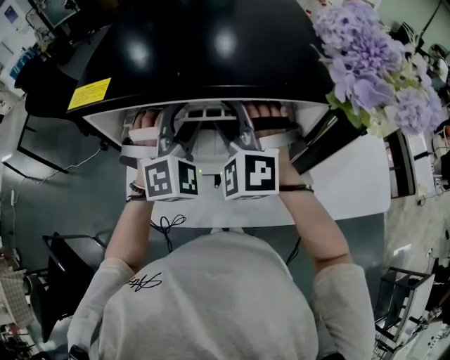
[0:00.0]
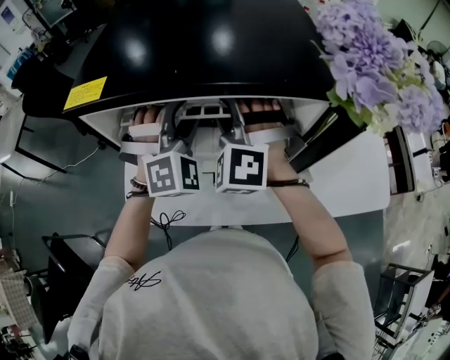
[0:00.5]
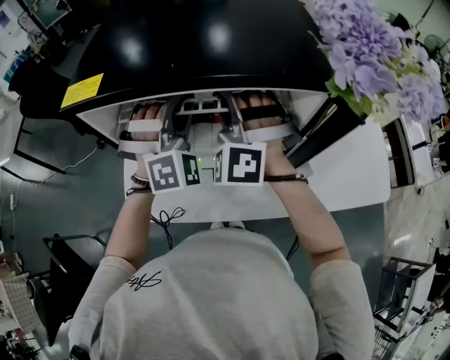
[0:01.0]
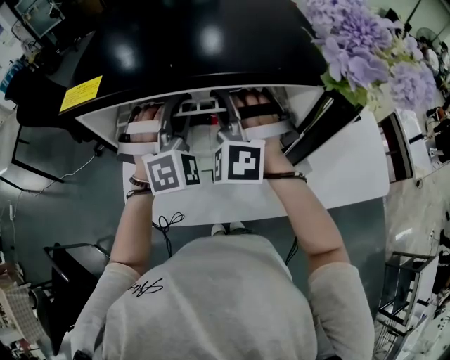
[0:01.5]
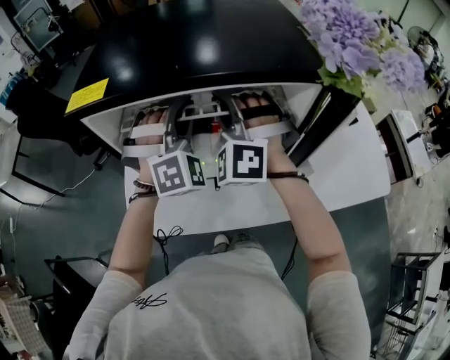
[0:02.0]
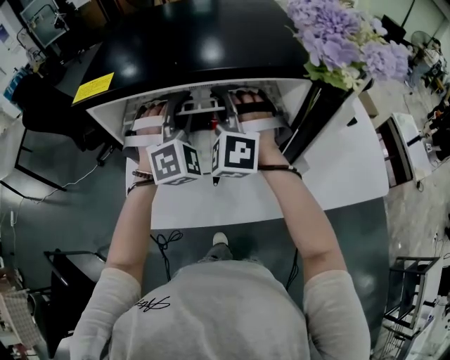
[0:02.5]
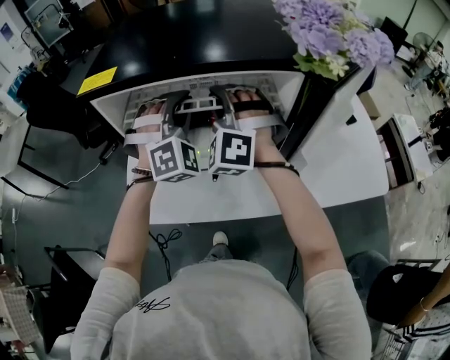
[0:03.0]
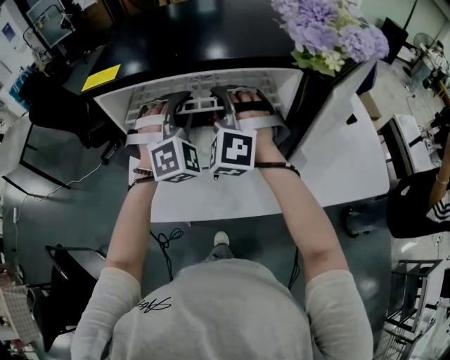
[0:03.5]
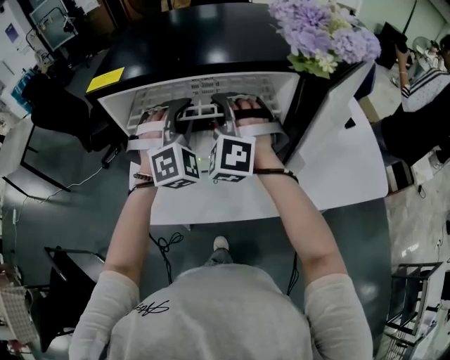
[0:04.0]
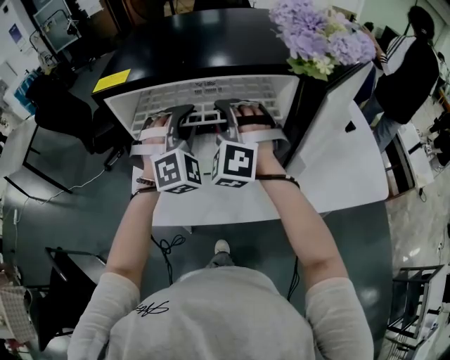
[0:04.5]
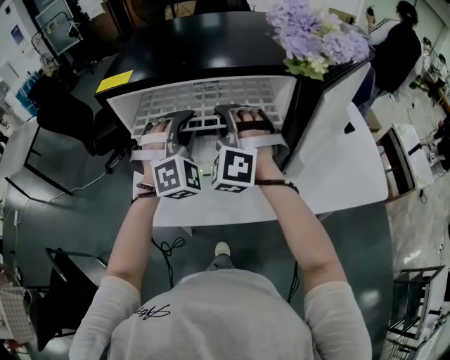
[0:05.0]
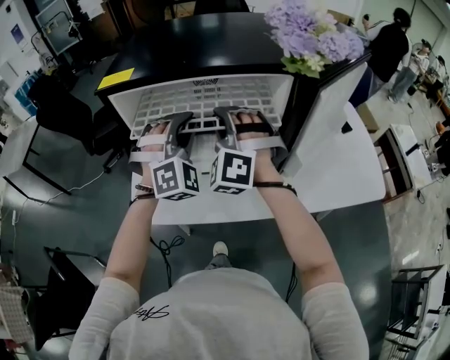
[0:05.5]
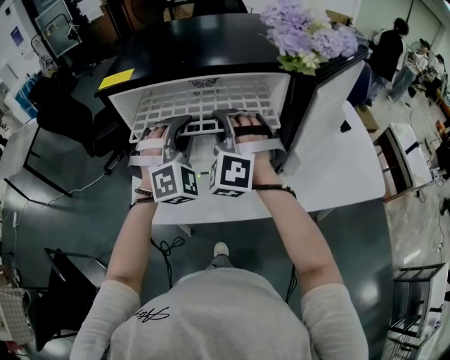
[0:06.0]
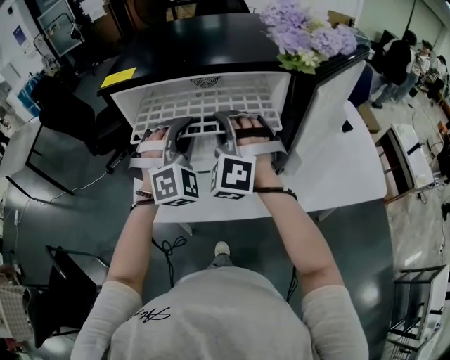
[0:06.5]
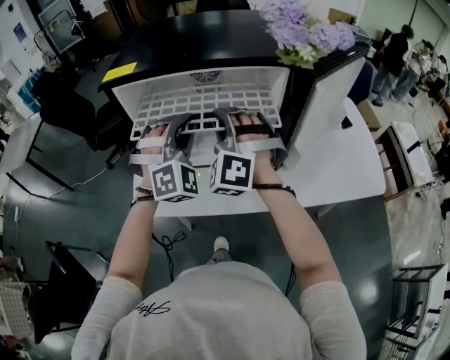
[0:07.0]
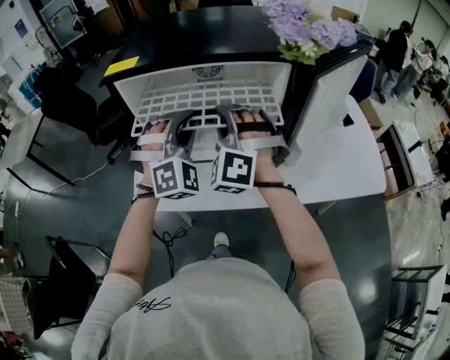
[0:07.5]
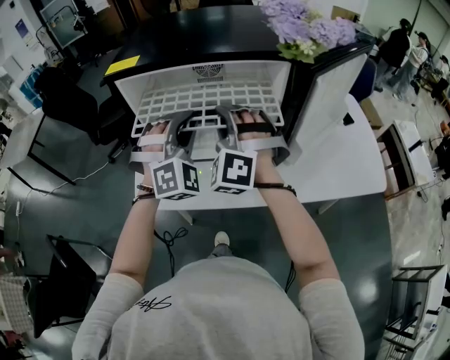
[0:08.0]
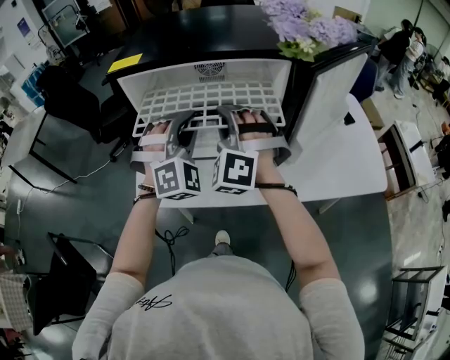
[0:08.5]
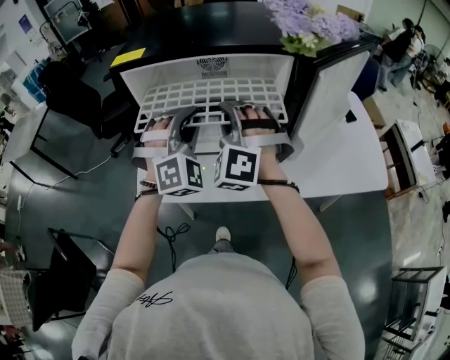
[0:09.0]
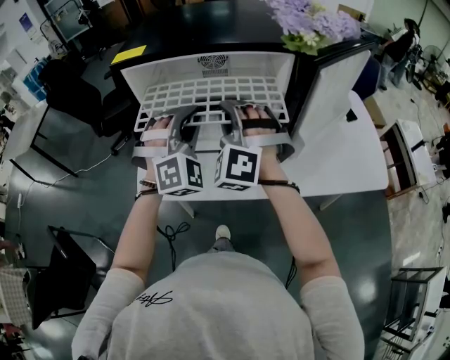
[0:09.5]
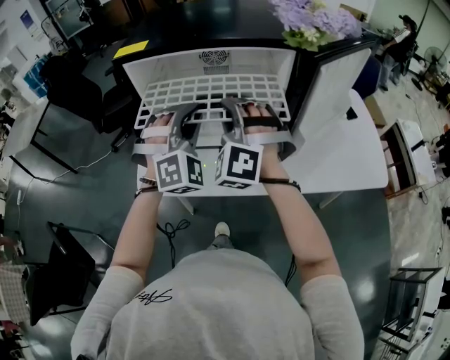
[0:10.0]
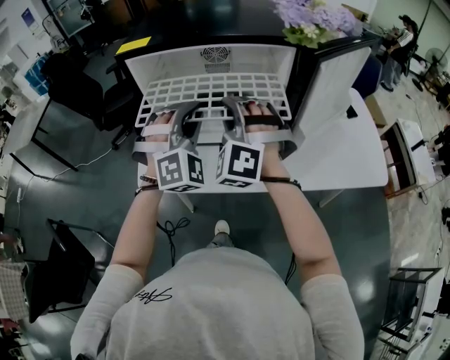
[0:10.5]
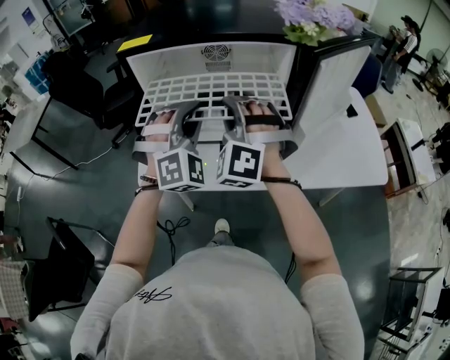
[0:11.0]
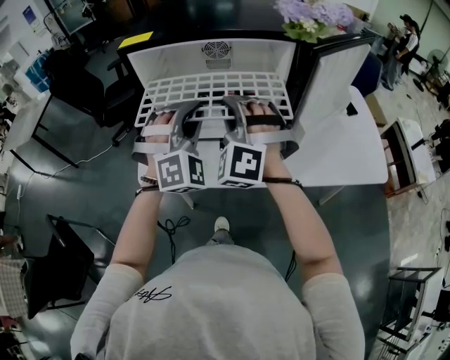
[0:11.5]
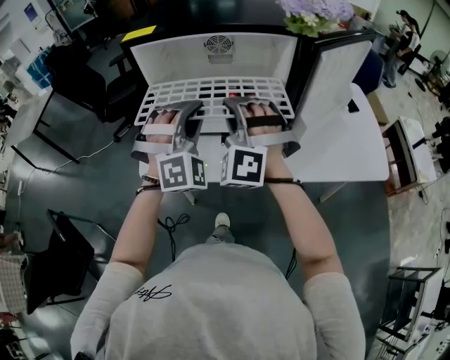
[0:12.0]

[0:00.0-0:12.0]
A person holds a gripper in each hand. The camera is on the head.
0:00.0 to 0:02.0: The right gripper closes its fingers, while the left gripper closes its fingers.
0:02.0 to 0:04.0: The grippers move only a little.
0:04.0 to 0:06.0: The left gripper shifts about 5 cm backward.
0:06.0 to 0:10.0: The grippers make only small movements.
0:10.0 to 0:12.0: The grippers make only small movements.

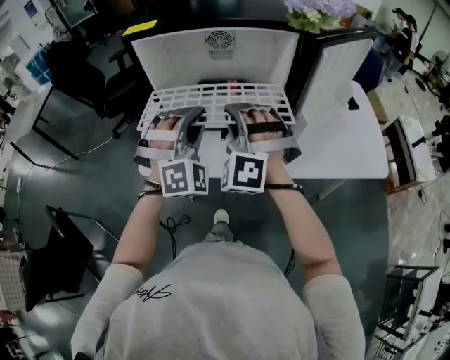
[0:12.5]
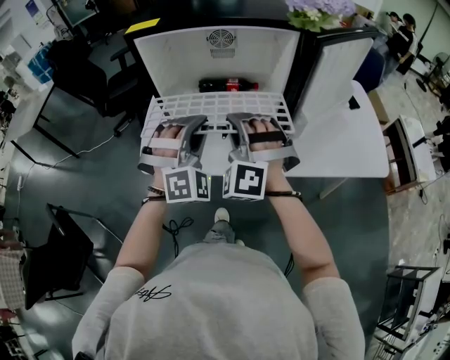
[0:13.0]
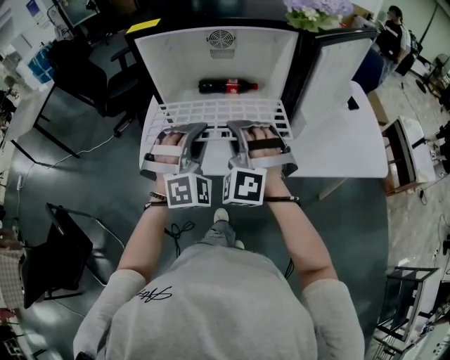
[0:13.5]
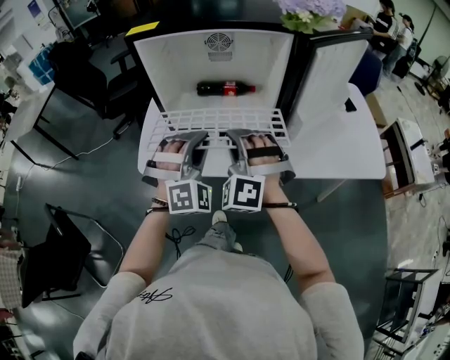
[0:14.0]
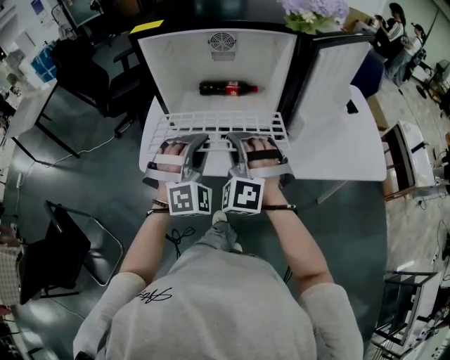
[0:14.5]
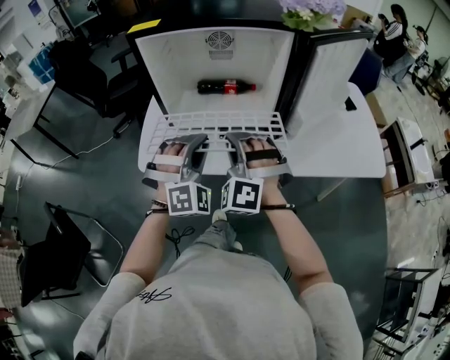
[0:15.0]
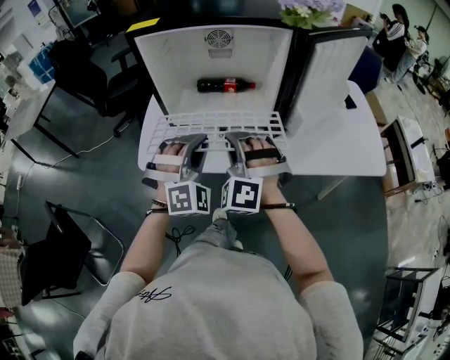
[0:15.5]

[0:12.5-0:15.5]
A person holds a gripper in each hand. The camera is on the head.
0:12.5 to 0:14.0: Both grippers travel together downward, roughly 5 cm.
0:14.0 to 0:15.5: There are only small adjustments of the grippers.

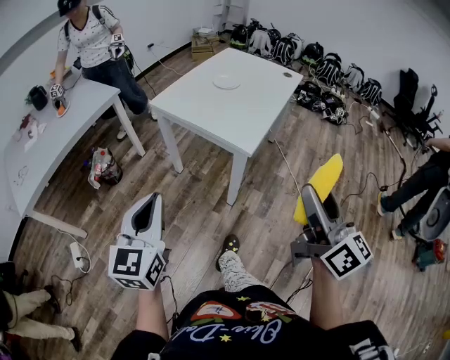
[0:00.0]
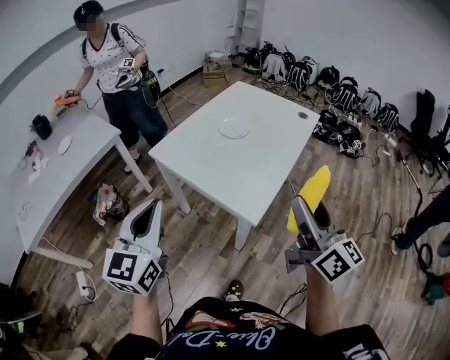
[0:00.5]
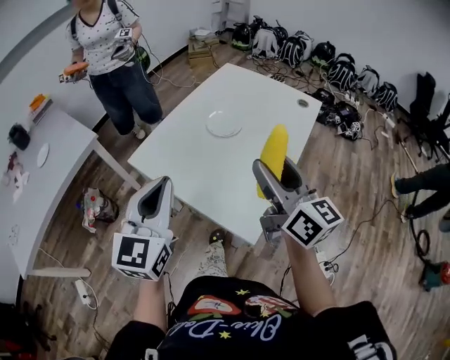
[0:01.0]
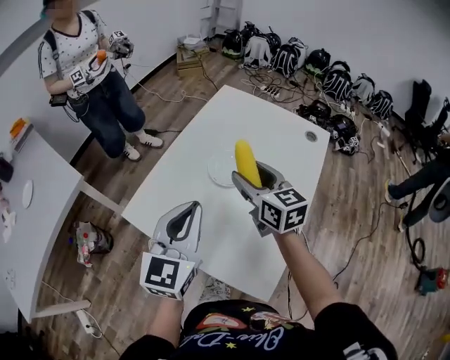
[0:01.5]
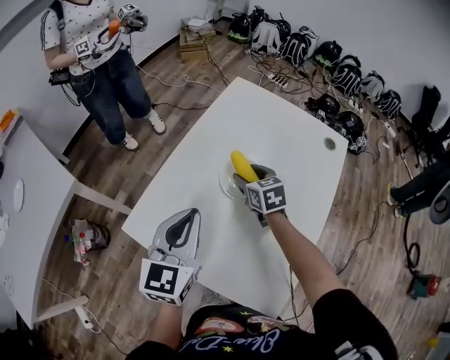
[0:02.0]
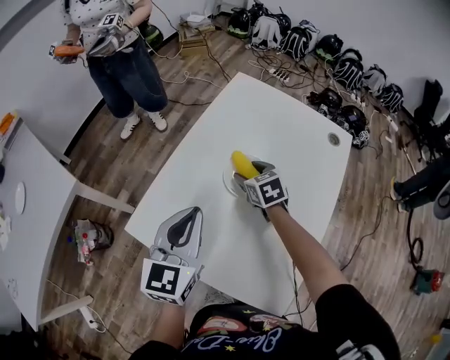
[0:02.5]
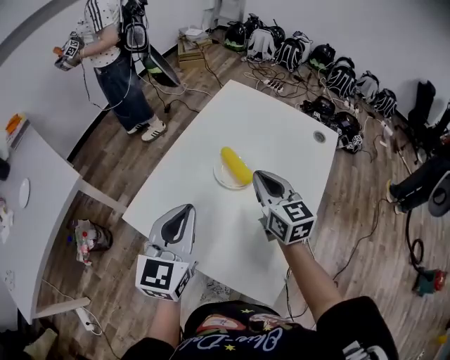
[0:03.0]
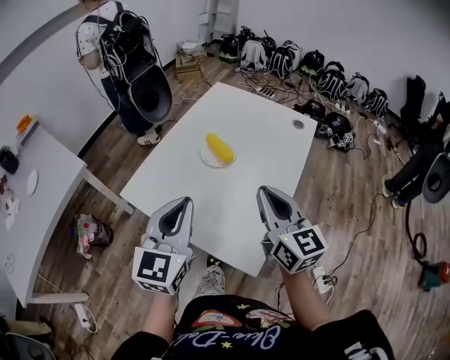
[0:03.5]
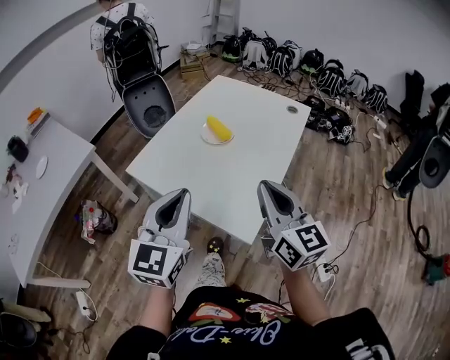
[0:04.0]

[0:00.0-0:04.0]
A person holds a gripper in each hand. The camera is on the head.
0:00.0 to 0:02.0: Both grippers are carried forward, roughly 70 cm. The right gripper points its fingers some 50 degrees further downward.
0:02.0 to 0:04.0: The right gripper goes about 50 cm backward and upward, points its fingers some 40 degrees further upward, and closes up, while the left gripper travels backward by about 30 cm.

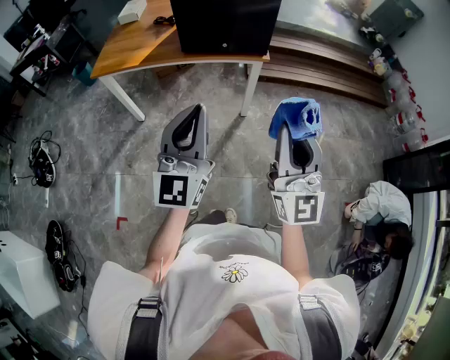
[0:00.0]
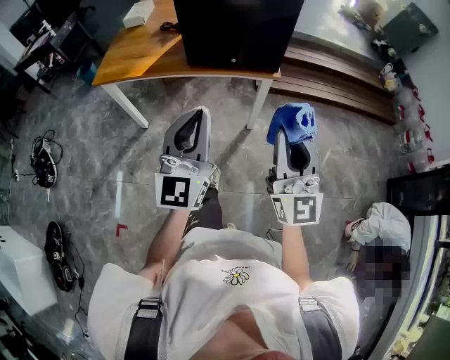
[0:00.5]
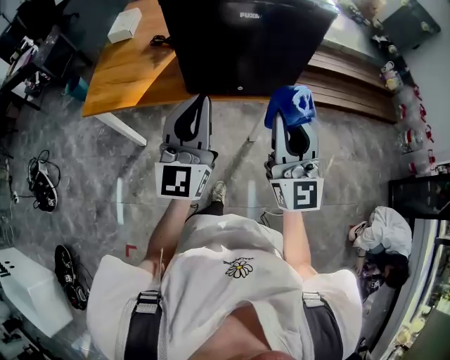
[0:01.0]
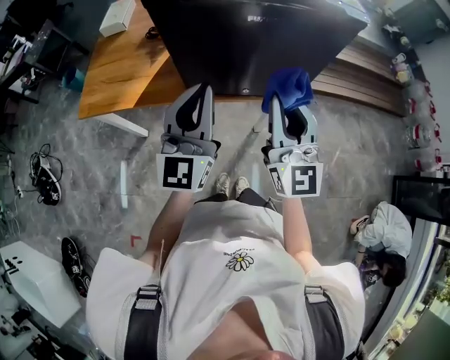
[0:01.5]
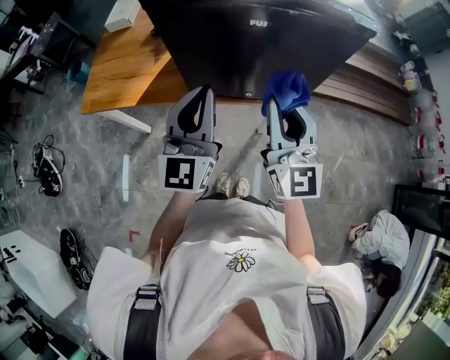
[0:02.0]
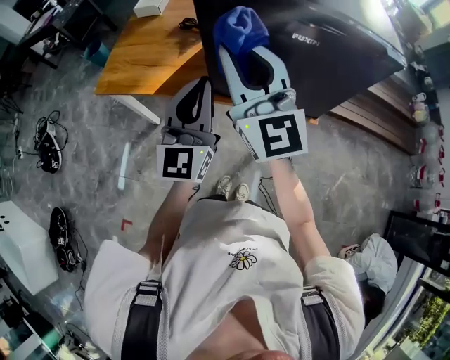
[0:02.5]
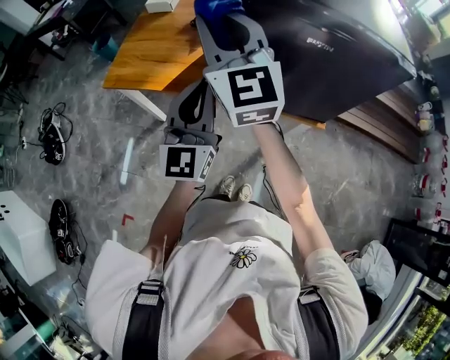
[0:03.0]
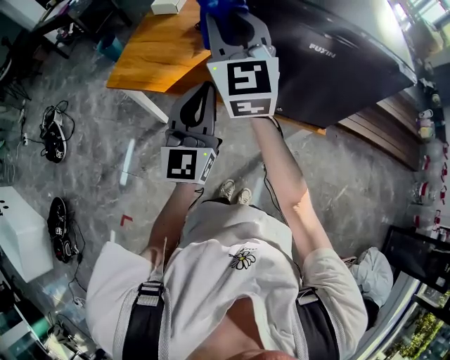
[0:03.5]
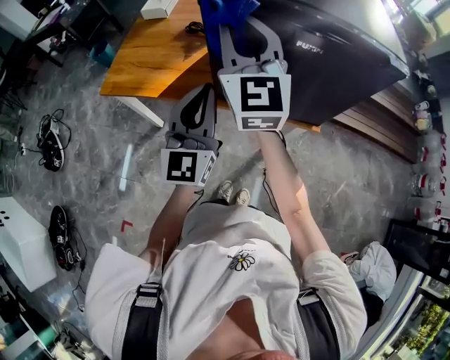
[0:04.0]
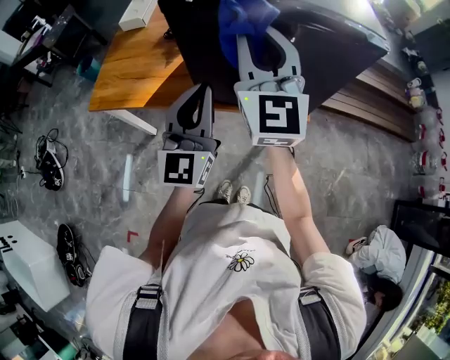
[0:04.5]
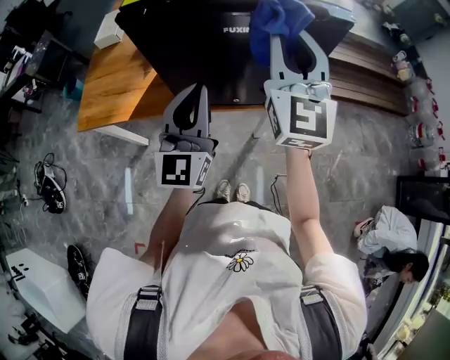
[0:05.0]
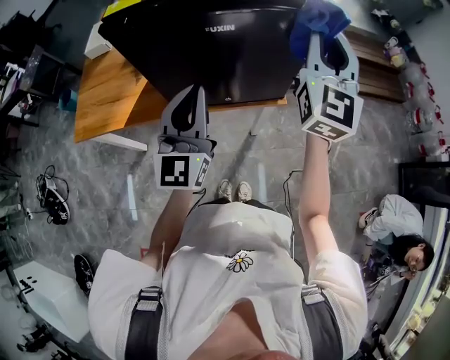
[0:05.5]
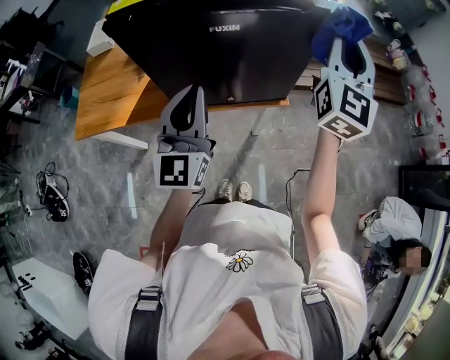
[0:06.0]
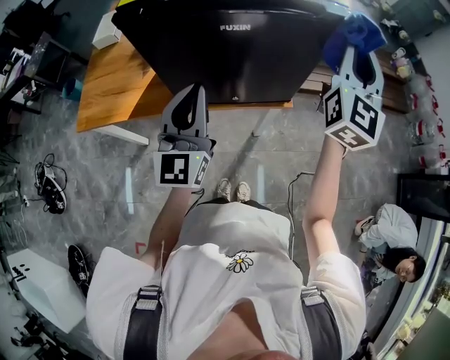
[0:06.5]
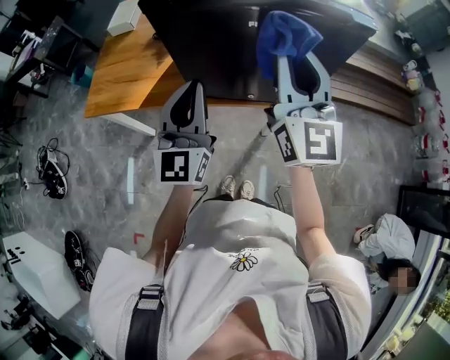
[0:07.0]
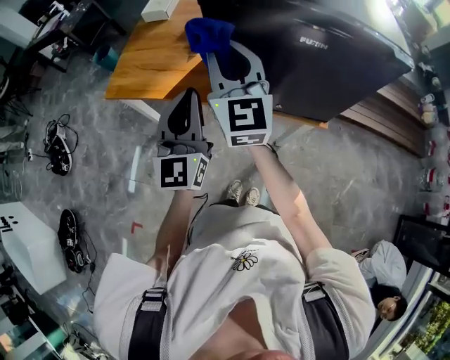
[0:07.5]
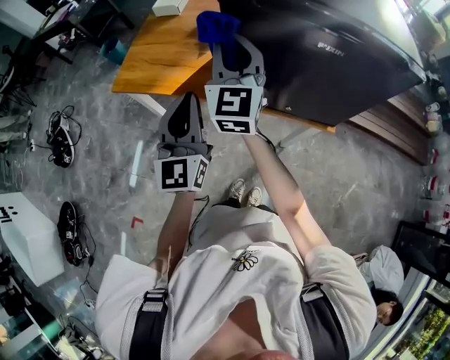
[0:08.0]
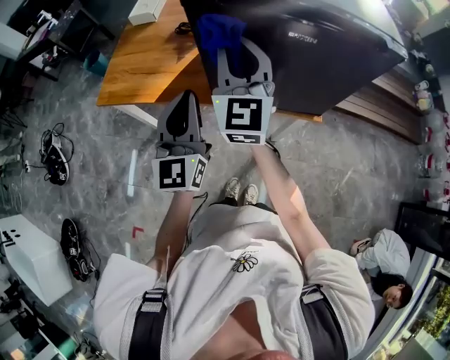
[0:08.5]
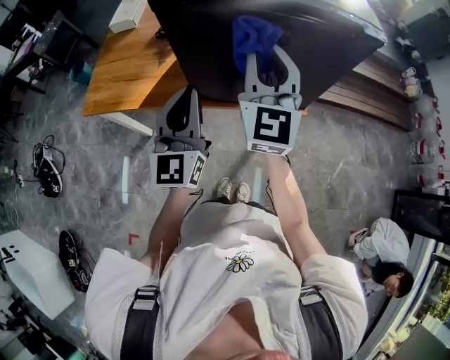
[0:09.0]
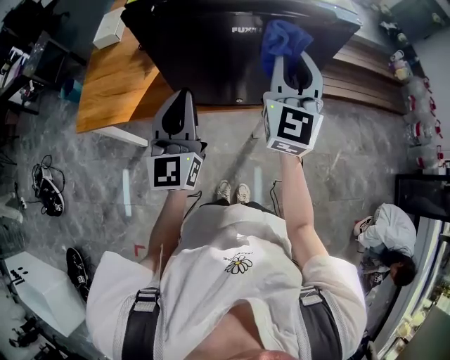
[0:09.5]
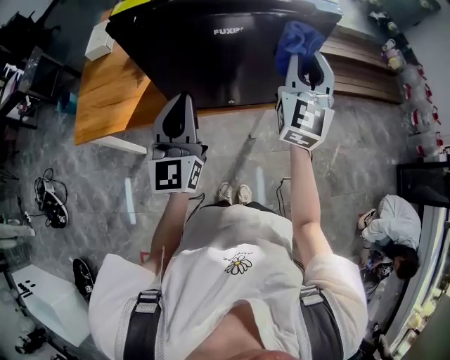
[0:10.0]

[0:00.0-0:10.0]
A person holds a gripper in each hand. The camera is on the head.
0:00.0 to 0:02.0: The two grippers travel together, forward, roughly 40 cm.
0:02.0 to 0:04.0: The left gripper travels to the left by about 5 cm. Meanwhile the right gripper shifts about 25 cm to the left, forward and upward.
0:04.0 to 0:06.0: The right gripper shifts by about 35 cm, and rotates roughly 40 degrees. Meanwhile the left gripper changes place by roughly 10 cm.
0:06.0 to 0:08.0: The left gripper changes place by approximately 20 cm, and swivels approximately 20 degrees; the right gripper shifts by approximately 40 cm, and changes its angle by about 40 degrees.
0:08.0 to 0:10.0: The left gripper moves some 15 cm, and swivels about 20 degrees; the right gripper shifts by about 35 cm, and swivels approximately 30 degrees.
